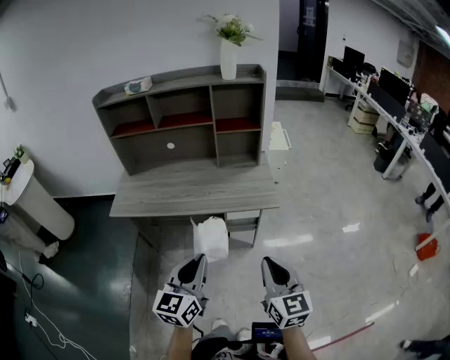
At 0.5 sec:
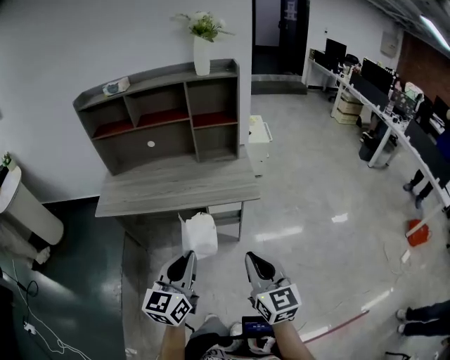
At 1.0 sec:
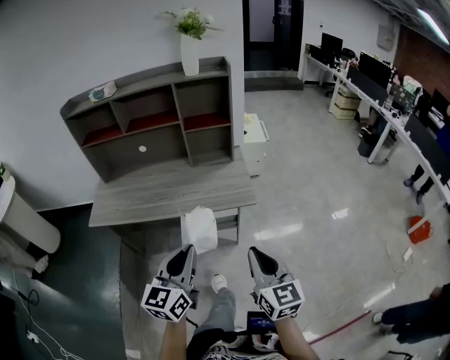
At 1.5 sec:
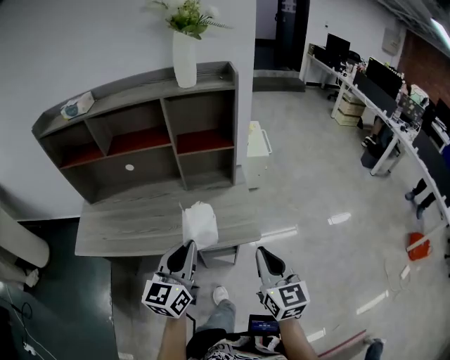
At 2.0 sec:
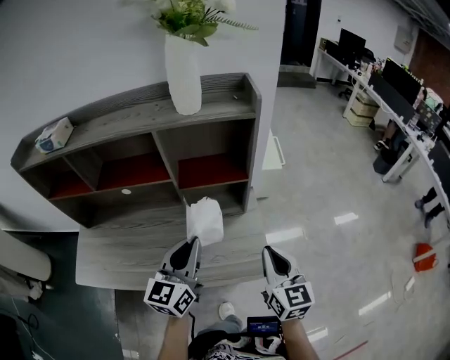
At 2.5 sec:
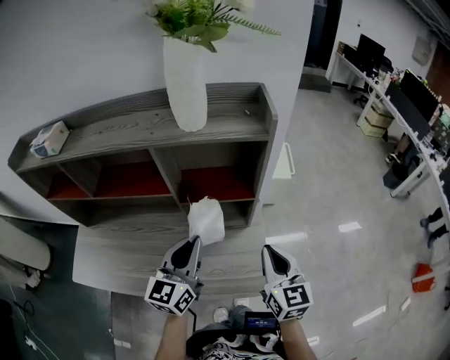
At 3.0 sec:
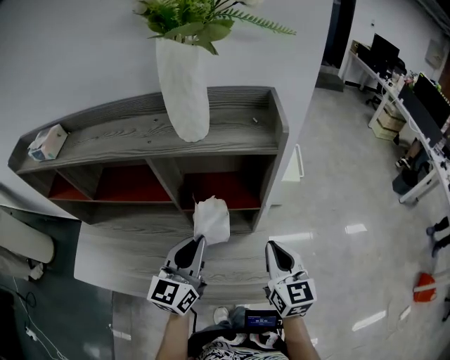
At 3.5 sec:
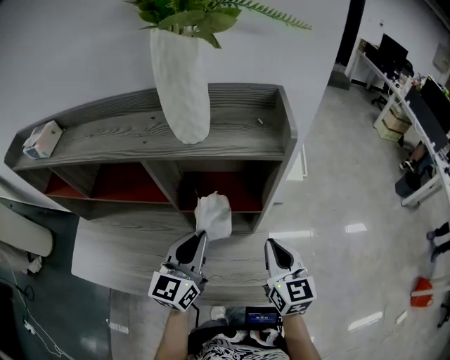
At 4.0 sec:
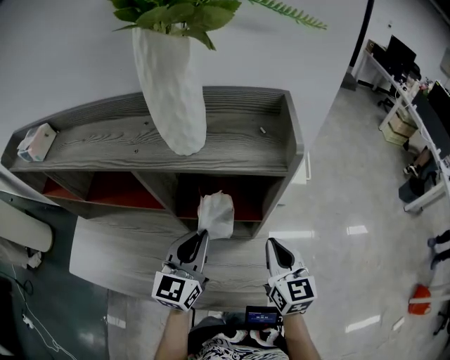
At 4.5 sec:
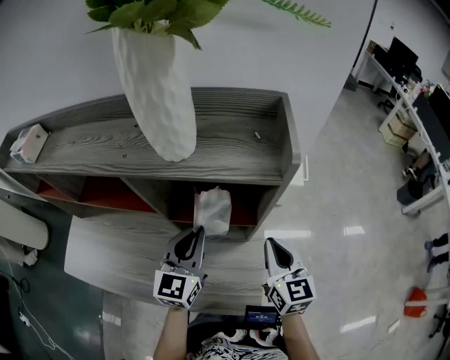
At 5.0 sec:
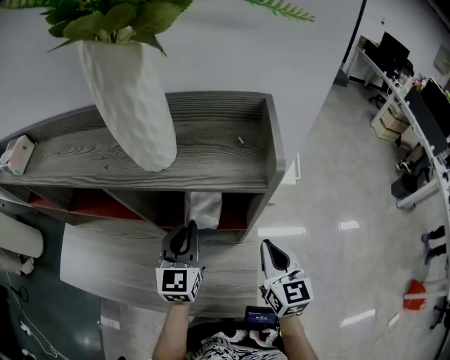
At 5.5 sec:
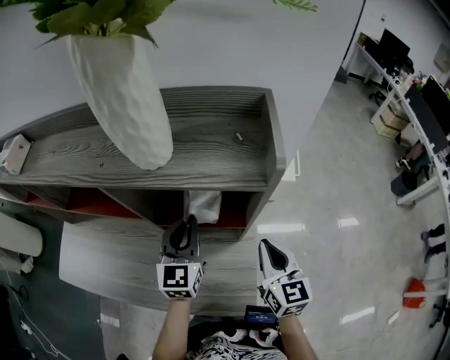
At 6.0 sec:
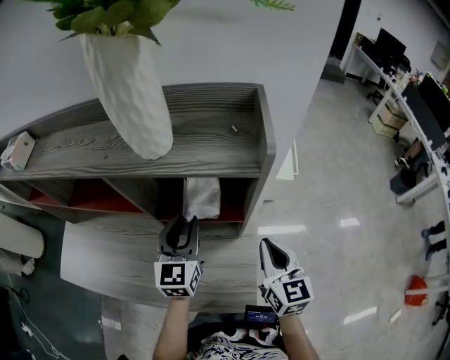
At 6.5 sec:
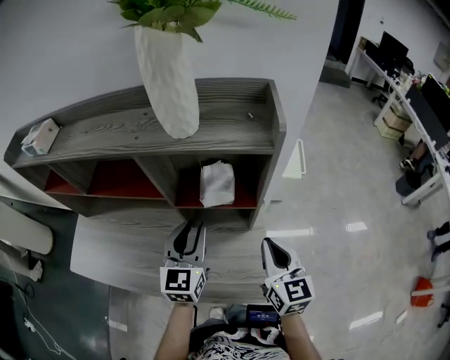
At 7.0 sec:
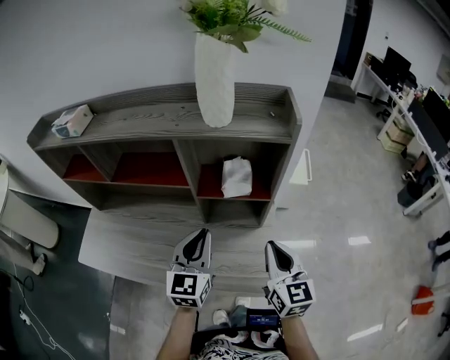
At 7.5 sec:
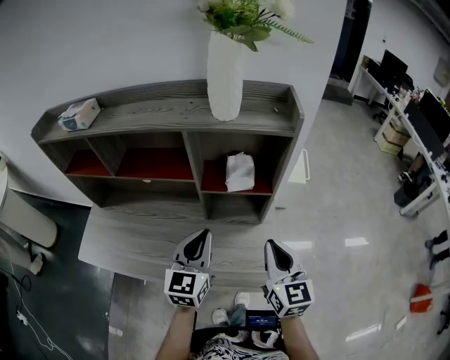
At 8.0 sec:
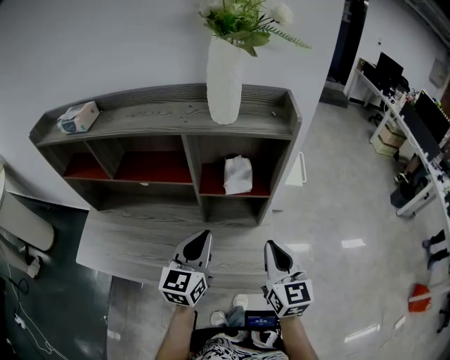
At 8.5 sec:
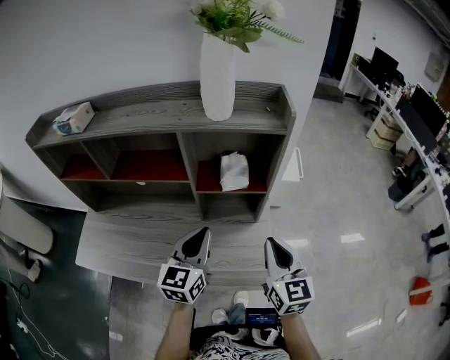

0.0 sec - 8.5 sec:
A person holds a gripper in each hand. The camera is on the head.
0.0 sec - 2.0 sec: Both grippers are carried forward, about 40 cm.
2.0 sec - 4.0 sec: Both grippers move forward, some 15 cm.
4.0 sec - 6.5 sec: The left gripper reaches approximately 5 cm forward, then returns.
6.5 sec - 8.5 sec: Both grippers travel together backward, approximately 10 cm. The left gripper closes.

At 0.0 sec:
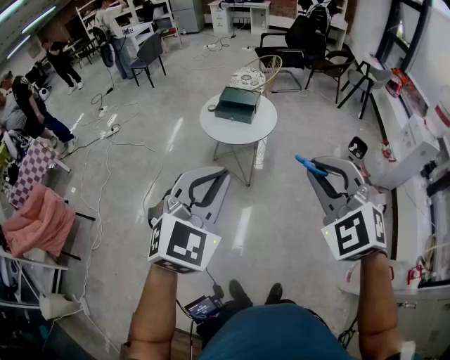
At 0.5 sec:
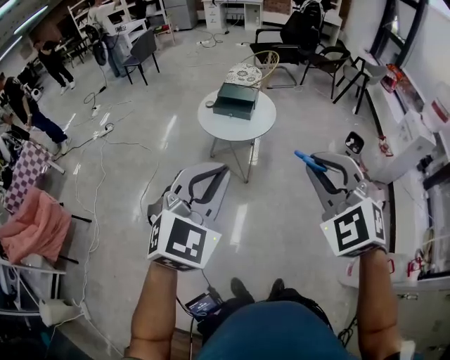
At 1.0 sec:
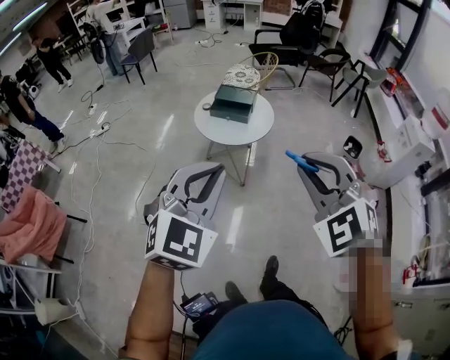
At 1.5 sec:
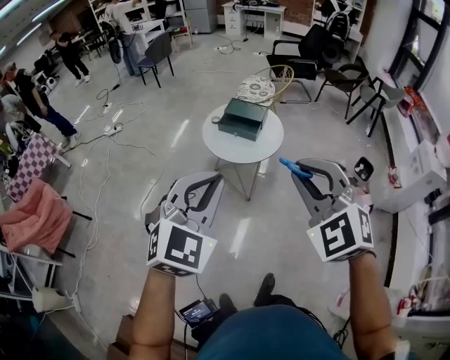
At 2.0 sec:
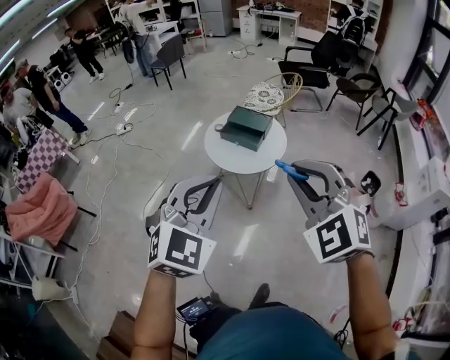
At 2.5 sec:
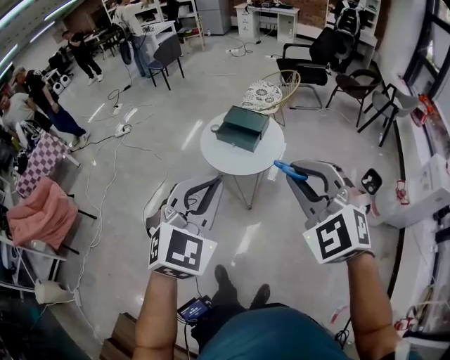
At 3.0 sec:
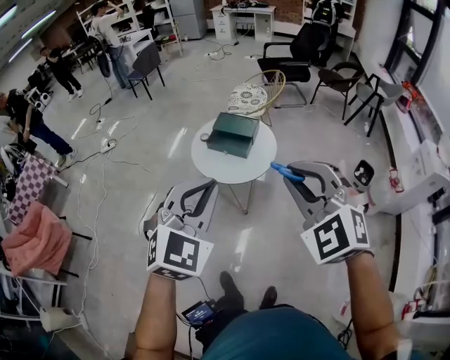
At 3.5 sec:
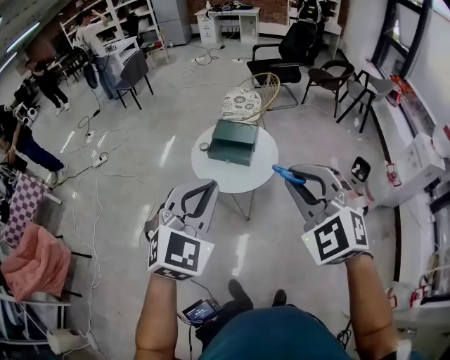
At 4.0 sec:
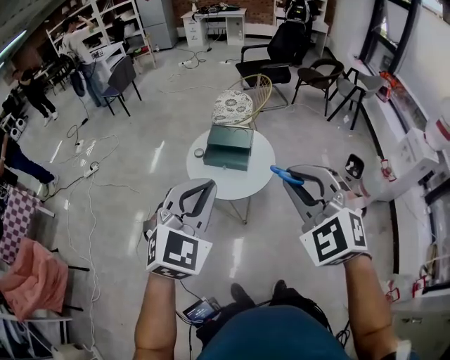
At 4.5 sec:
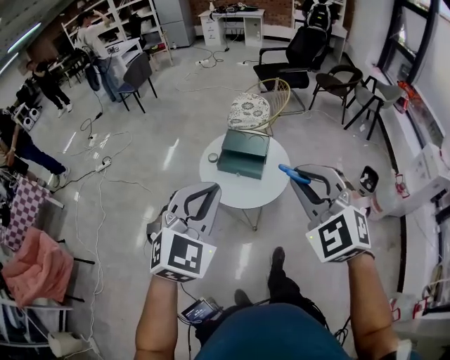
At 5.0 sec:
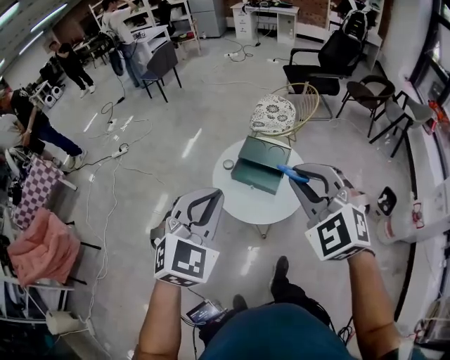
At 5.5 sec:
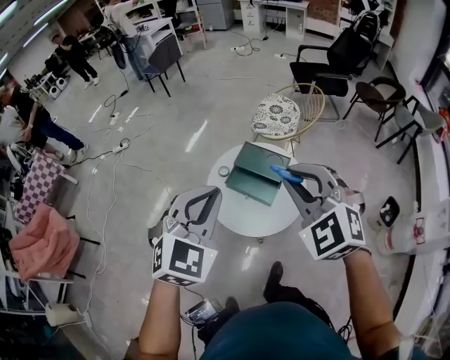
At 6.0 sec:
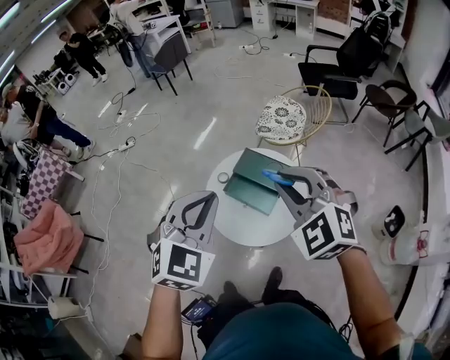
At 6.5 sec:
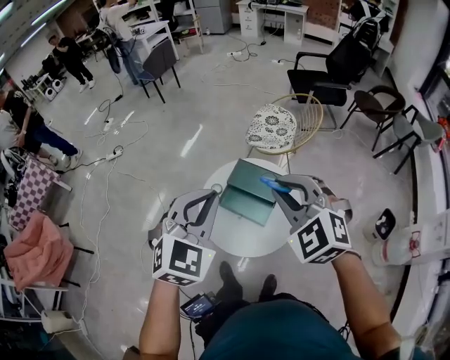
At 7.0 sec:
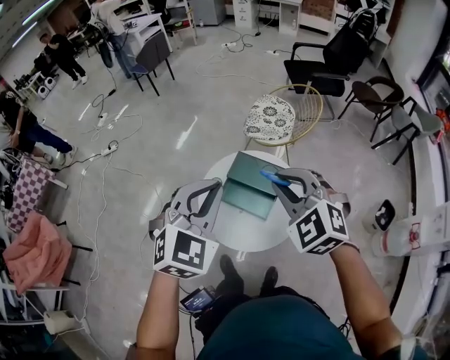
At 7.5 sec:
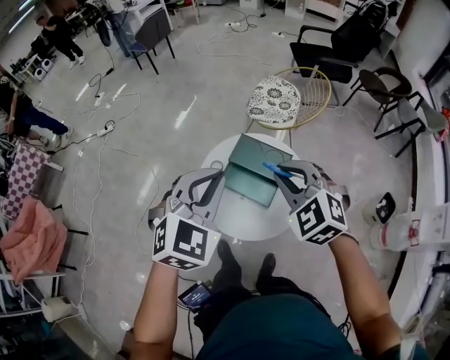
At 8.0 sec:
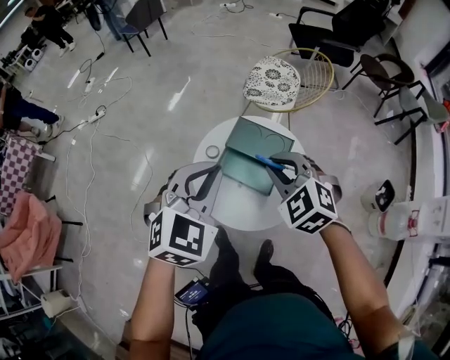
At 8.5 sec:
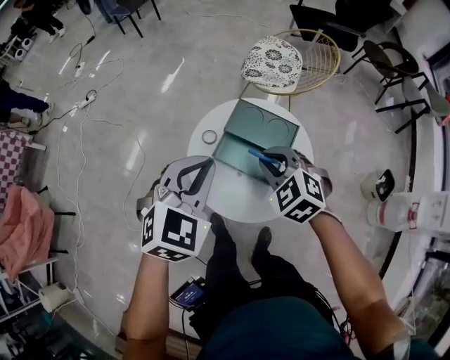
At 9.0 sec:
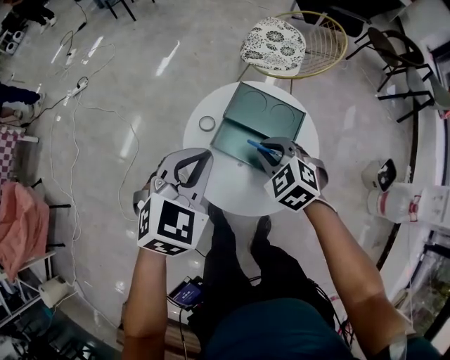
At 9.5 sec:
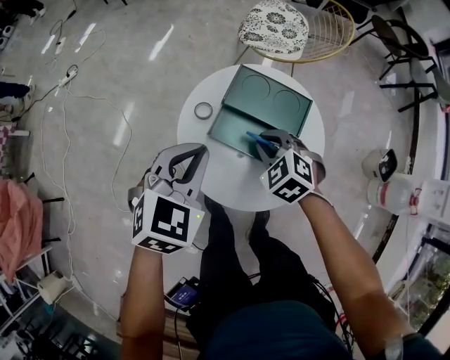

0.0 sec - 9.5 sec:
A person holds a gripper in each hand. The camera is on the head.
0.0 sec - 2.0 sec: The grippers both shift forward by approximately 25 cm.
2.0 sec - 4.0 sec: Both grippers move forward and to the left, about 30 cm.
4.0 sec - 5.5 sec: The grippers both shift forward by some 35 cm.
5.5 sec - 7.5 sec: The two grippers go approximately 25 cm forward and downward.
7.5 sec - 9.5 sec: Both grippers move downward, roughly 35 cm. The right gripper swivels approximately 20 degrees.

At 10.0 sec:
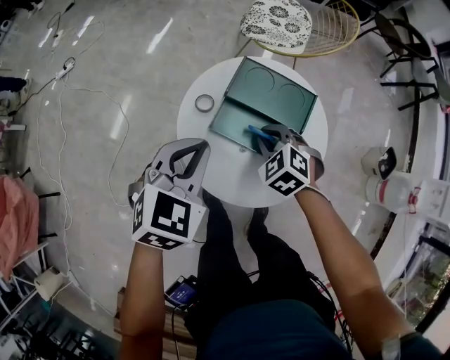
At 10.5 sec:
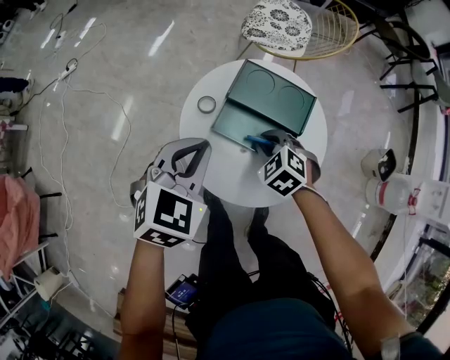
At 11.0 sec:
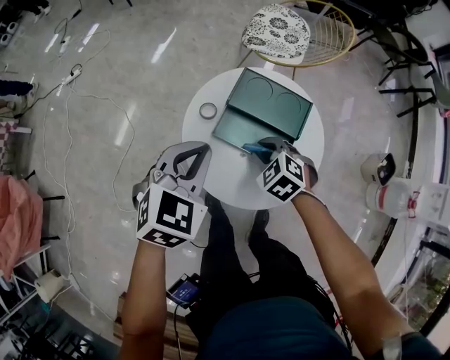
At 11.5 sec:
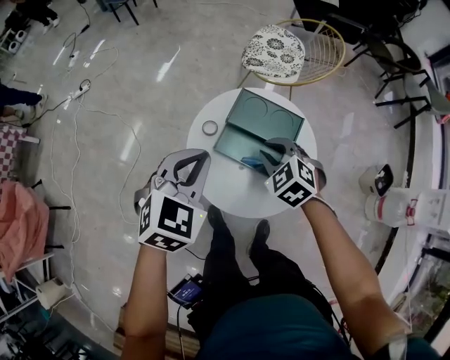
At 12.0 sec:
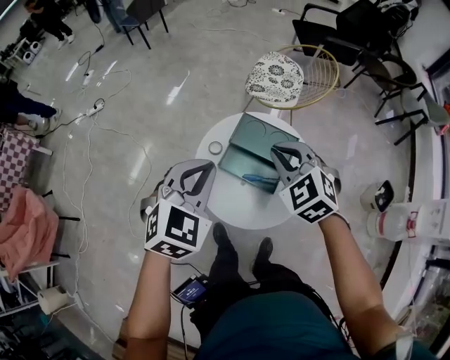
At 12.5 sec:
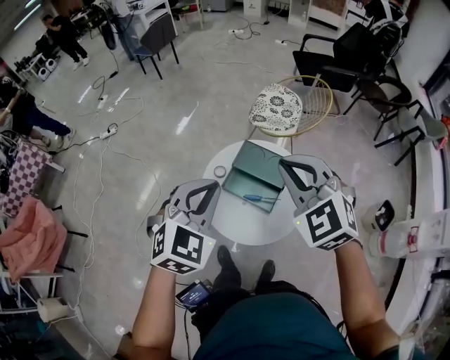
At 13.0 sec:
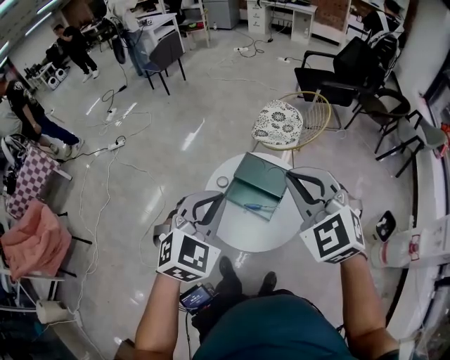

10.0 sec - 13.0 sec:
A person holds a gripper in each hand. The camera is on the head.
10.0 sec - 11.5 sec: Both grippers travel together upward, approximately 15 cm.
11.5 sec - 13.0 sec: The right gripper moves upward and backward, roughly 50 cm, and rotates some 30 degrees. Meanwhile the left gripper goes some 30 cm upward and backward.

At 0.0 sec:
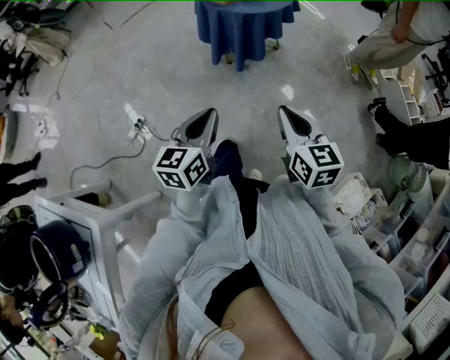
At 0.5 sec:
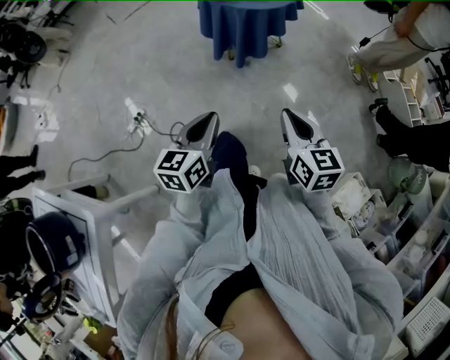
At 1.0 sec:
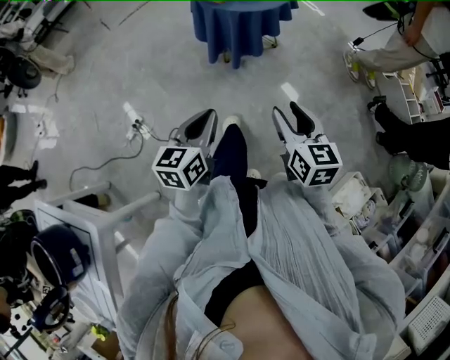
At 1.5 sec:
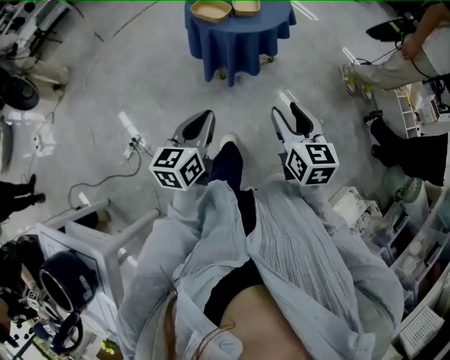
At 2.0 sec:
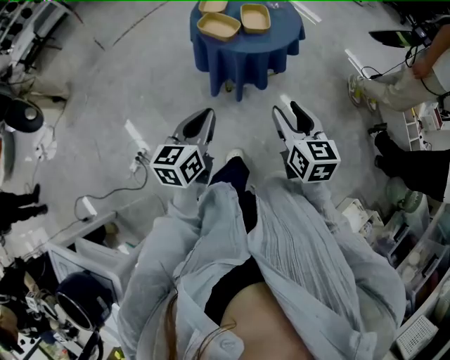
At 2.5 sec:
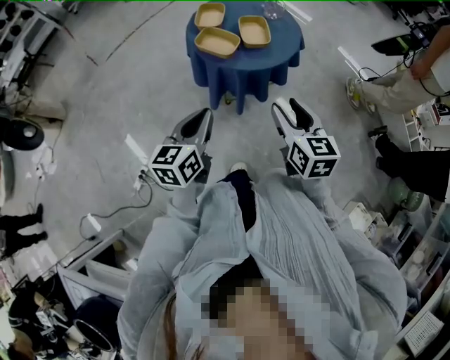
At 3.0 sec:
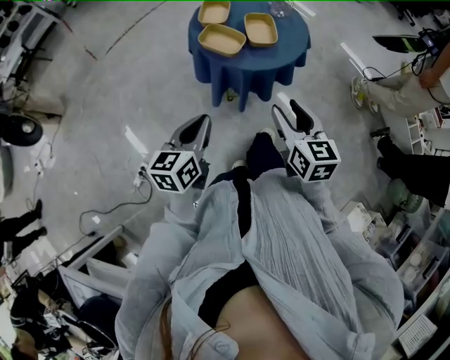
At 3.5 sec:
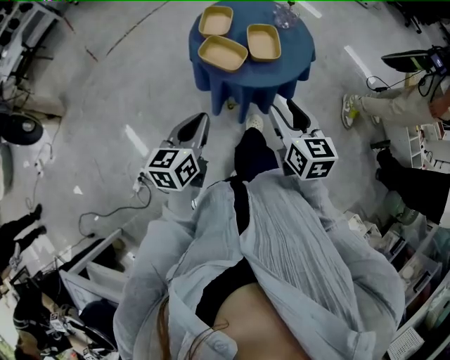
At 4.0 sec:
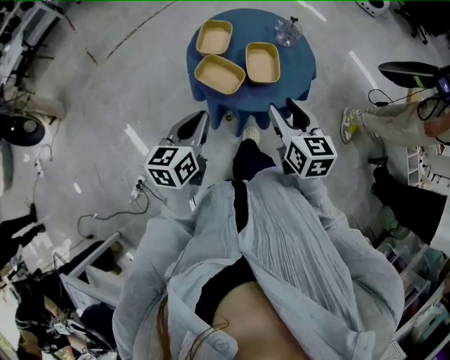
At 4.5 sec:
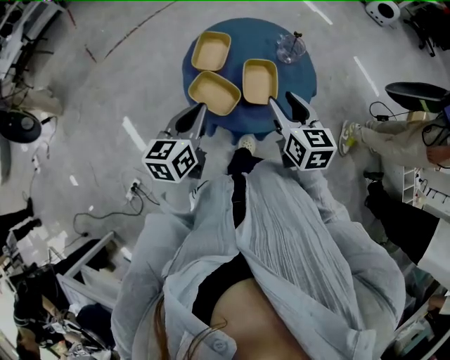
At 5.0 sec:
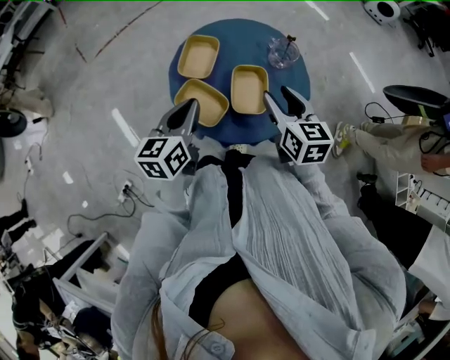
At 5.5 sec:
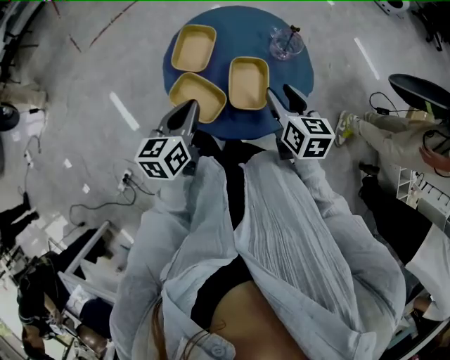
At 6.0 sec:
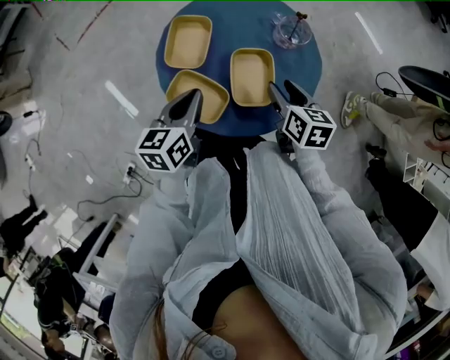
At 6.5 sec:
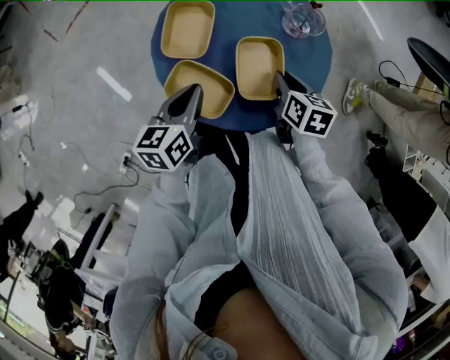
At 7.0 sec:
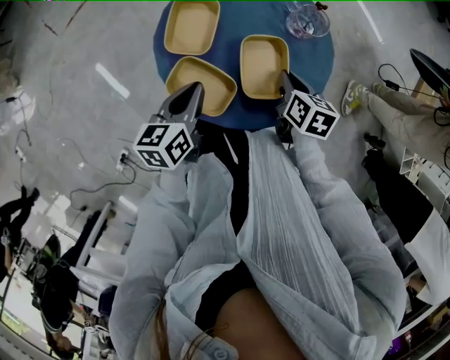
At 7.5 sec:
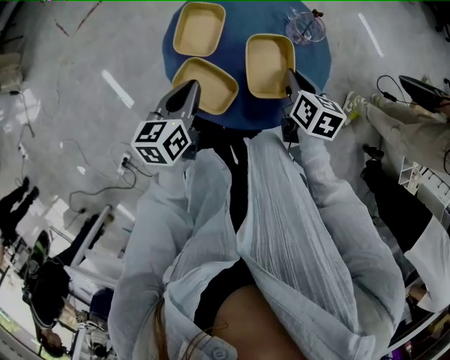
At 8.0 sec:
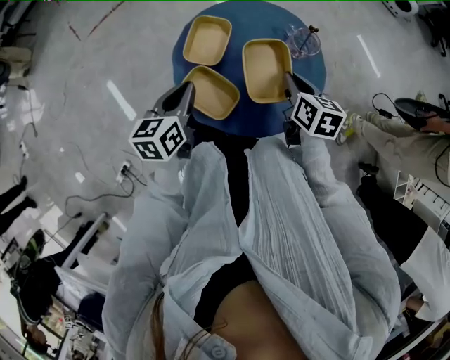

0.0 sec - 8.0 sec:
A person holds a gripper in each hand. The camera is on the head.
0.0 sec - 2.0 sec: The grippers both shift forward by roughly 25 cm. The right gripper opens up.
2.0 sec - 4.0 sec: The two grippers go about 25 cm forward.
4.0 sec - 6.0 sec: Both grippers travel together forward and downward, about 20 cm. The right gripper swivels about 20 degrees.
6.0 sec - 8.0 sec: The left gripper moves to the left, some 5 cm; the right gripper changes place by roughly 5 cm.
